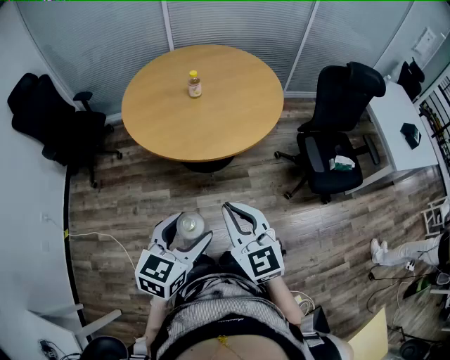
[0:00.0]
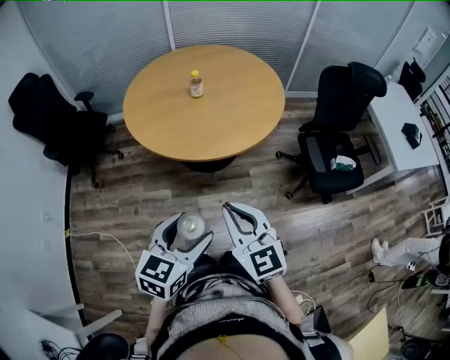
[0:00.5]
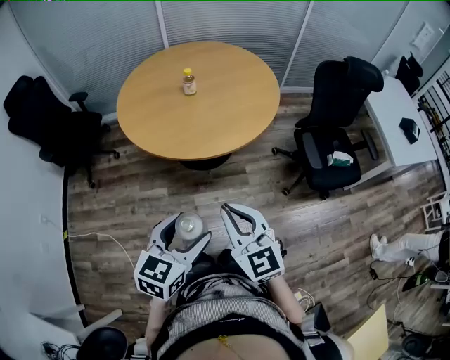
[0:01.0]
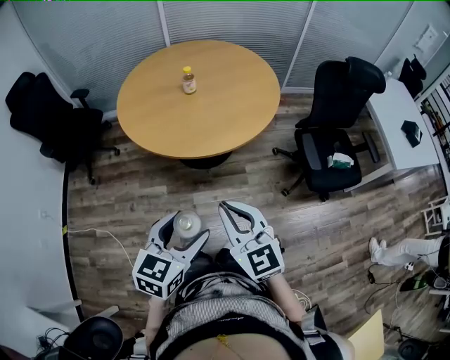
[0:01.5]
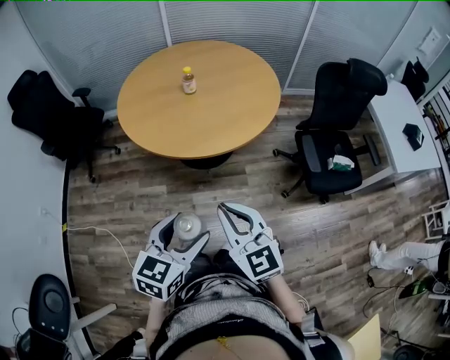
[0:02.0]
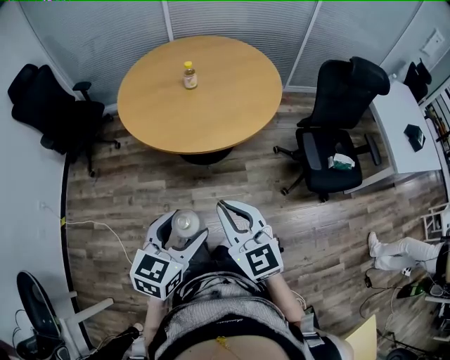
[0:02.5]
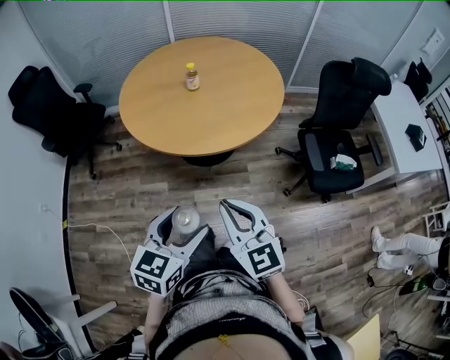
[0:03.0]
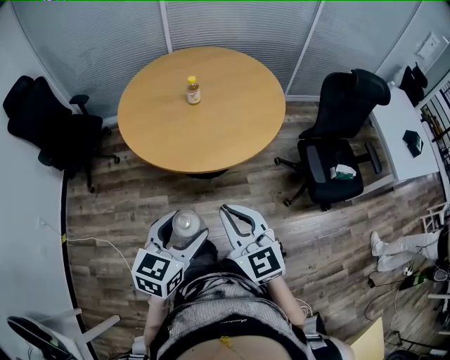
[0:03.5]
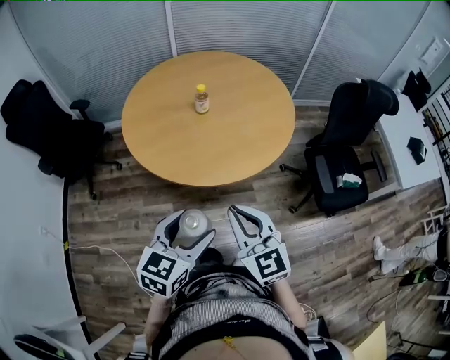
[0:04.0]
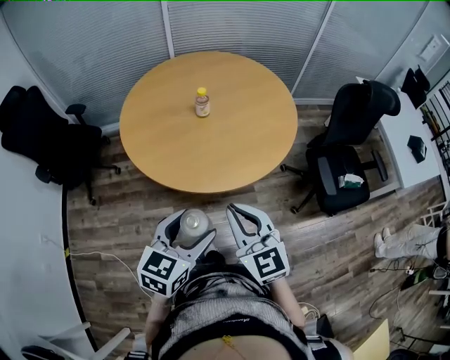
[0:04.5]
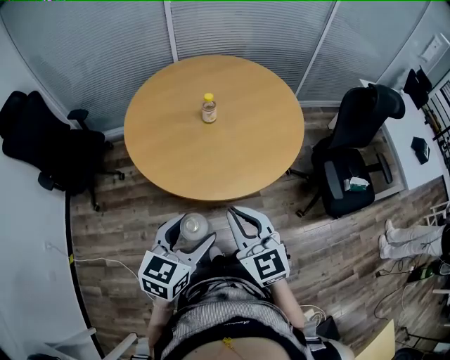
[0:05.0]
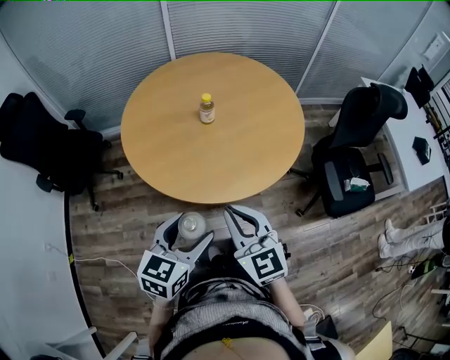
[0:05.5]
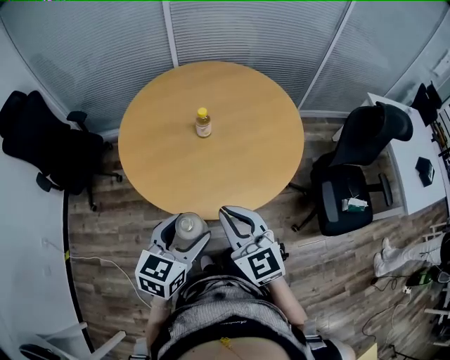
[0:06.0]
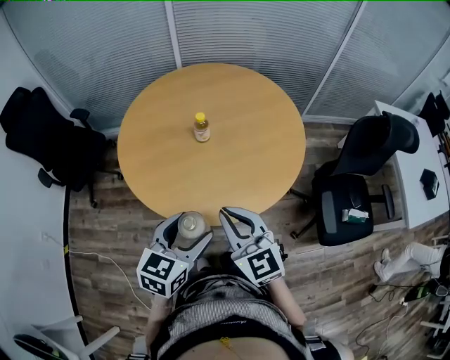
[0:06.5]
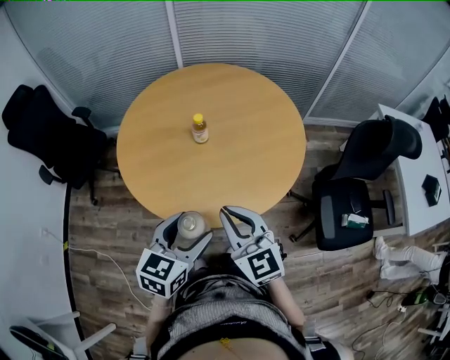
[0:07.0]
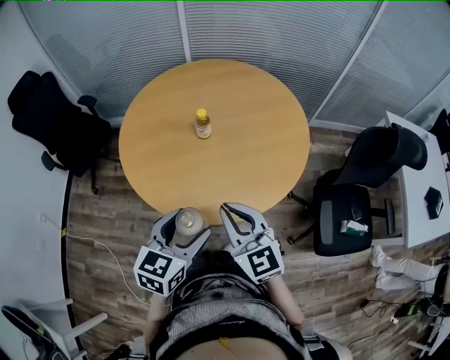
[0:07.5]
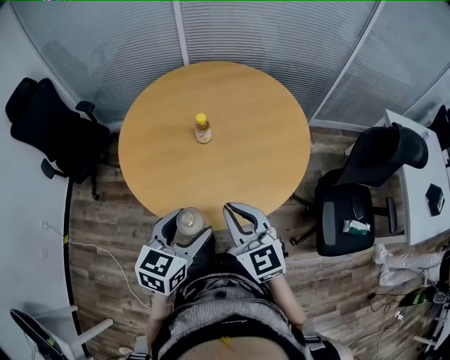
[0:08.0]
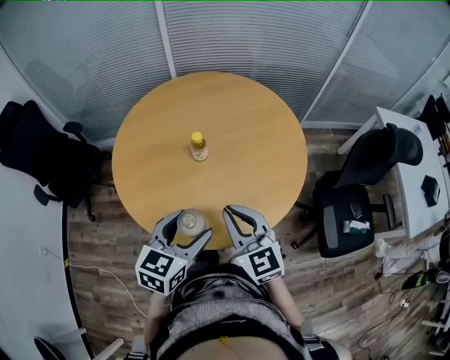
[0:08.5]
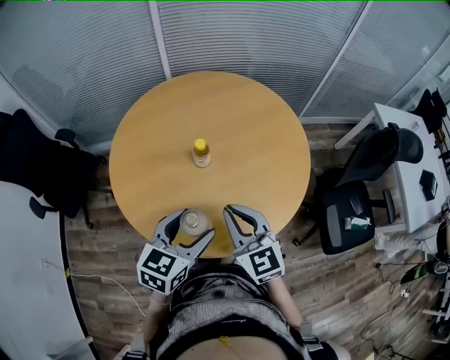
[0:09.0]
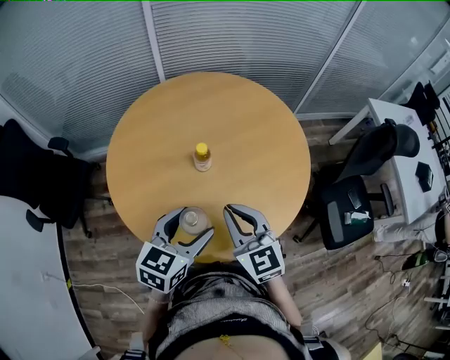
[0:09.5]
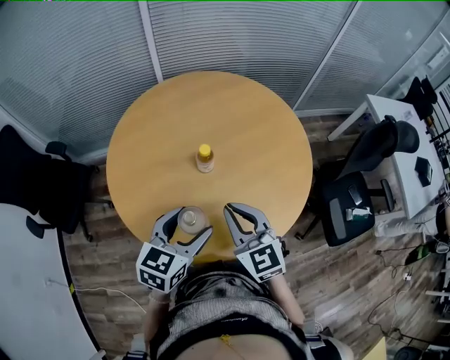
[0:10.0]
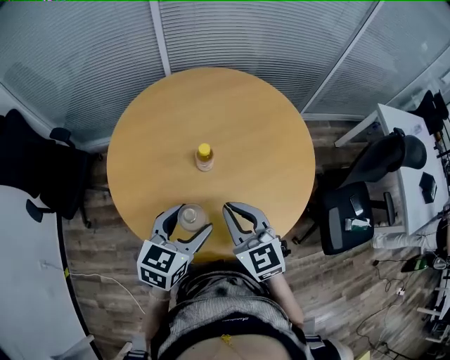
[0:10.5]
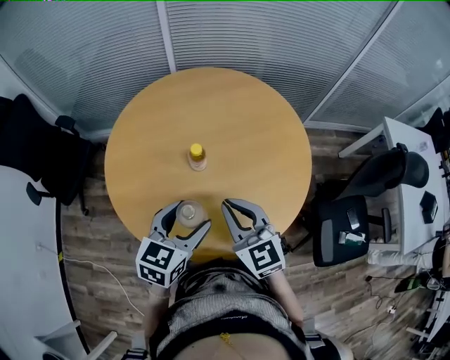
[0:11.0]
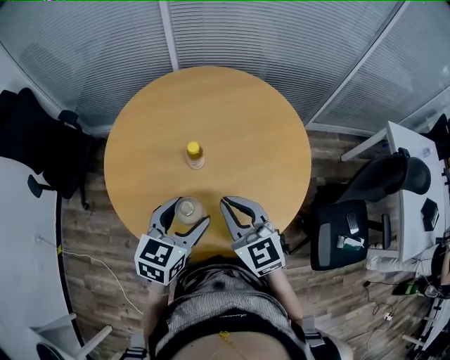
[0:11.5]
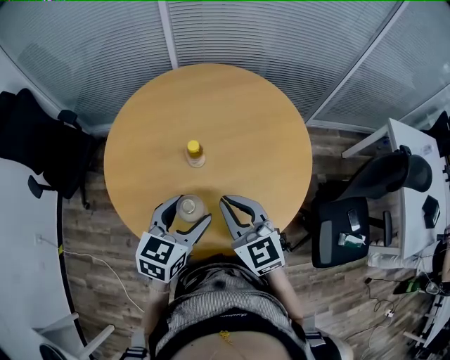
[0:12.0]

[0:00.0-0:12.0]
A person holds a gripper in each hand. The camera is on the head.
0.0 to 2.0 s: There are only small adjustments of the grippers.
2.0 to 4.0 s: The two grippers go about 15 cm forward and to the left.
4.0 to 6.0 s: Both grippers move forward, approximately 15 cm.
6.0 to 8.0 s: The grippers both shift forward and to the right by some 10 cm.
8.0 to 10.0 s: Both grippers travel together forward and to the left, about 15 cm.
10.0 to 12.0 s: The grippers both shift to the right by about 10 cm.

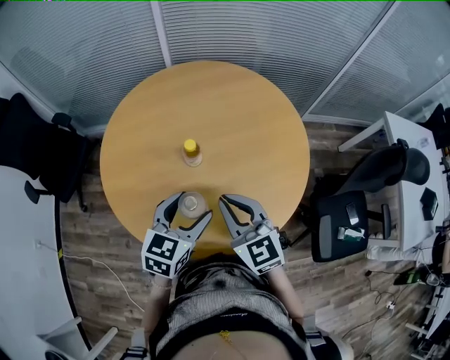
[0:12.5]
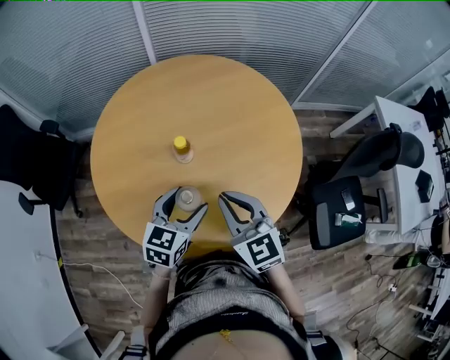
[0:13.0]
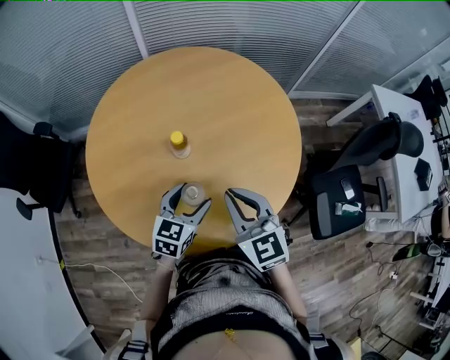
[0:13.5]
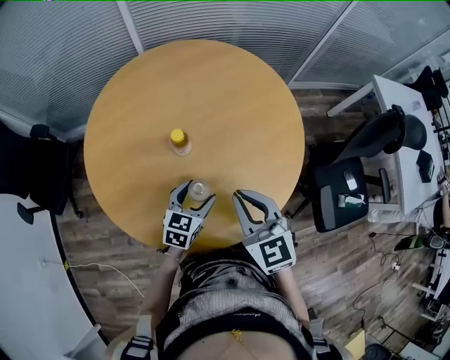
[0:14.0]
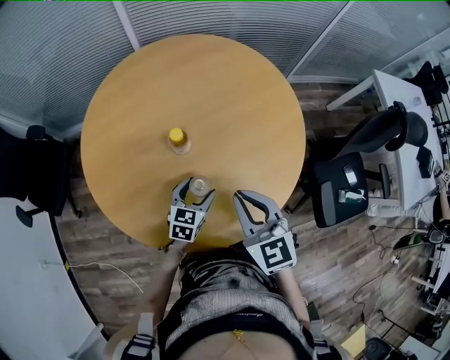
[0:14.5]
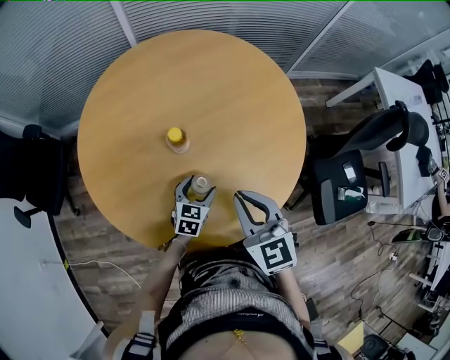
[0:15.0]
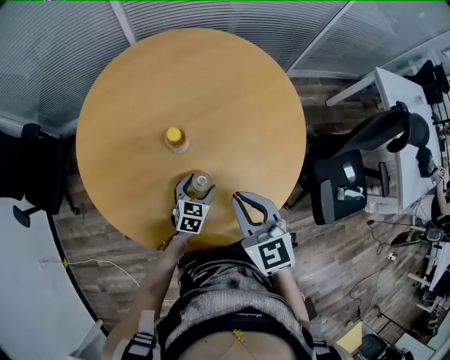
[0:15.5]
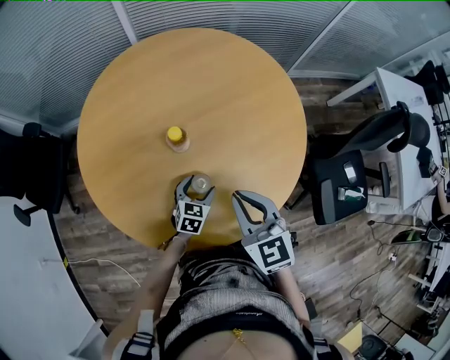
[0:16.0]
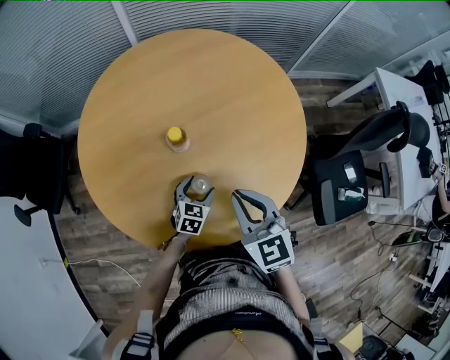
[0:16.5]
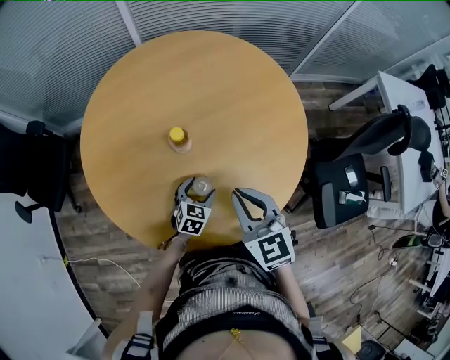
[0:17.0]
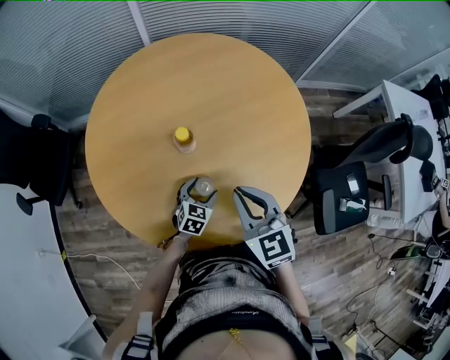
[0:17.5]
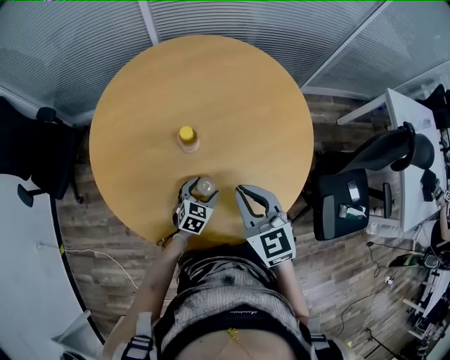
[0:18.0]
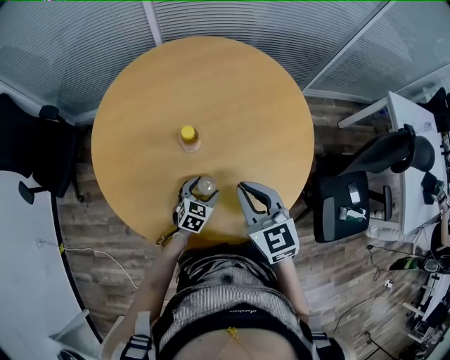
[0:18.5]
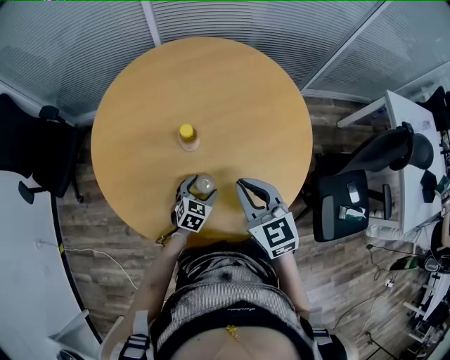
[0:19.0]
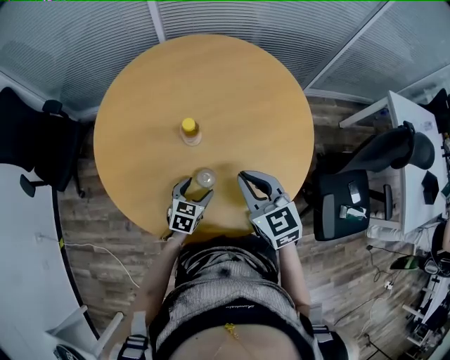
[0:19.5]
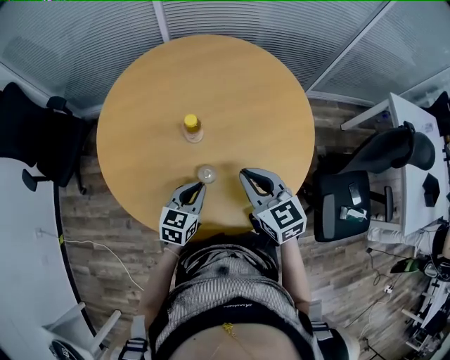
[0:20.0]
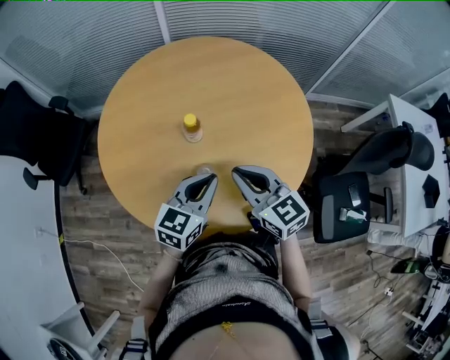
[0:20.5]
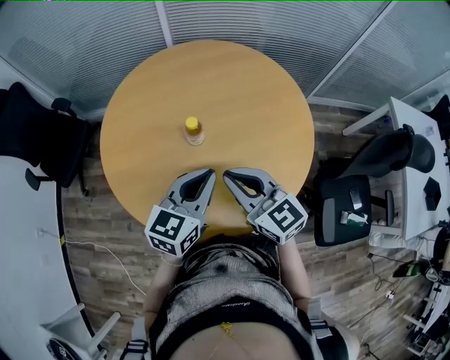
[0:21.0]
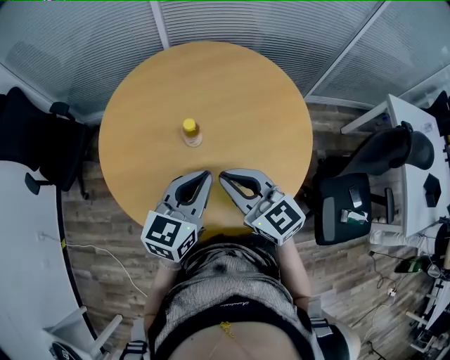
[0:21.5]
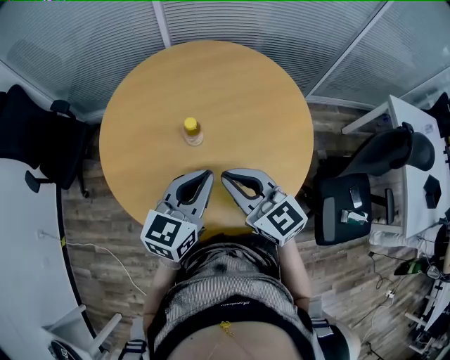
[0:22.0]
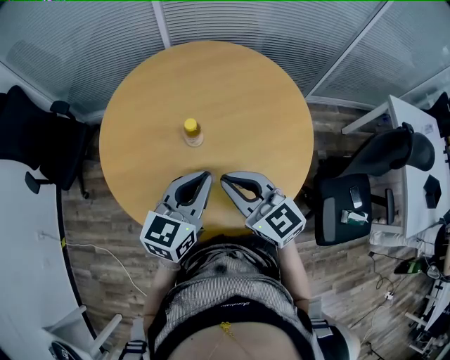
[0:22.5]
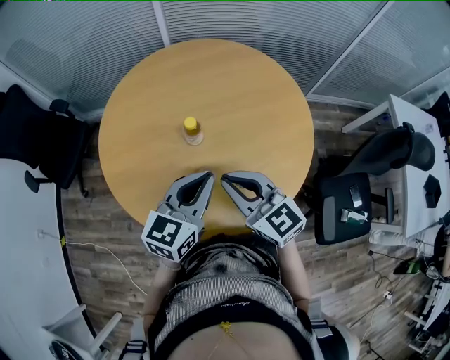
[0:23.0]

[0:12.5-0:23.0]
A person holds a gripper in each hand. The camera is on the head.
12.5 to 14.5 s: The left gripper is displaced downward by roughly 20 cm.
14.5 to 16.5 s: The left gripper heads downward, covering roughly 5 cm.
16.5 to 19.0 s: There are only small adjustments of the grippers.
19.0 to 21.0 s: The right gripper moves upward, some 5 cm, and rotates roughly 20 degrees; the left gripper goes some 30 cm upward, turns by roughly 30 degrees, and closes.
21.0 to 23.0 s: There are only small adjustments of the grippers.

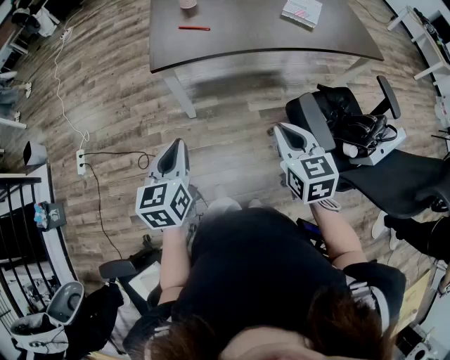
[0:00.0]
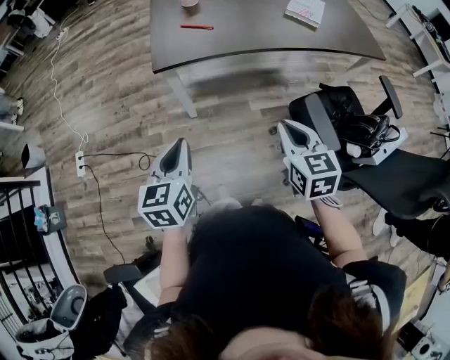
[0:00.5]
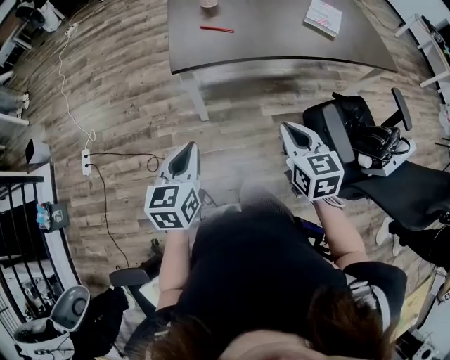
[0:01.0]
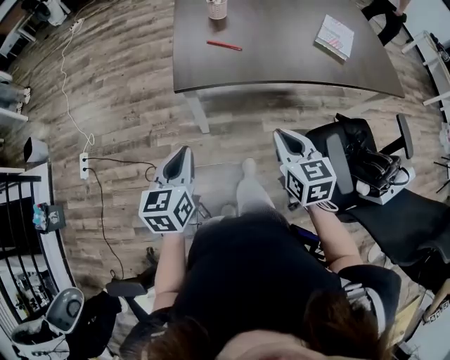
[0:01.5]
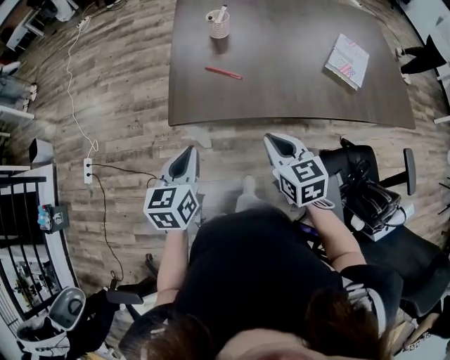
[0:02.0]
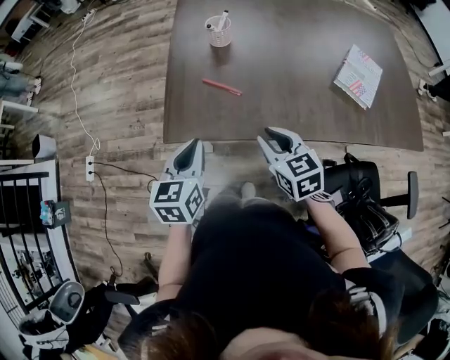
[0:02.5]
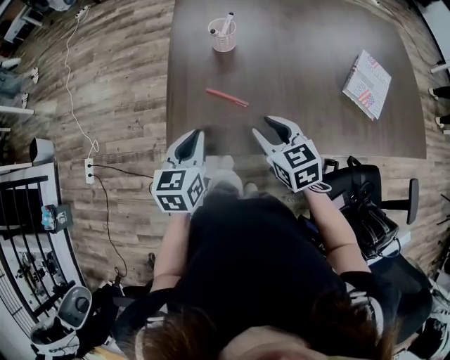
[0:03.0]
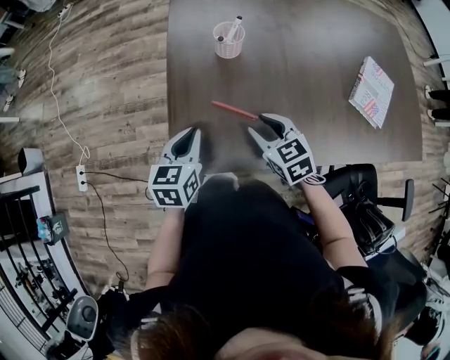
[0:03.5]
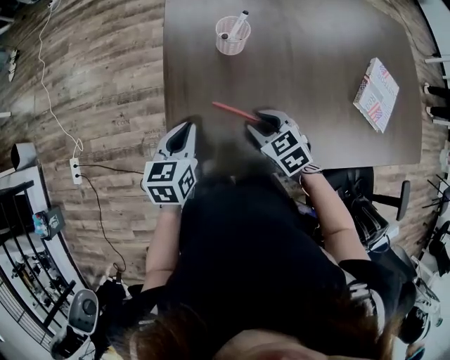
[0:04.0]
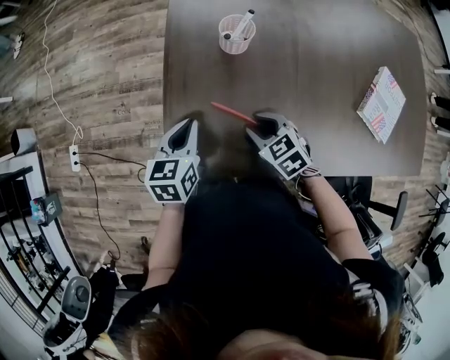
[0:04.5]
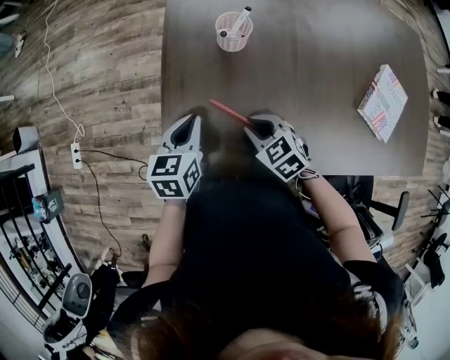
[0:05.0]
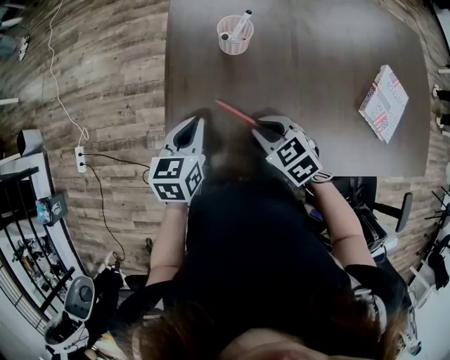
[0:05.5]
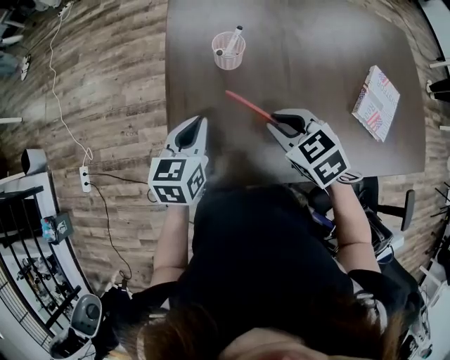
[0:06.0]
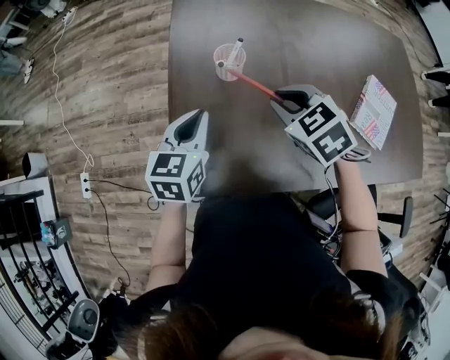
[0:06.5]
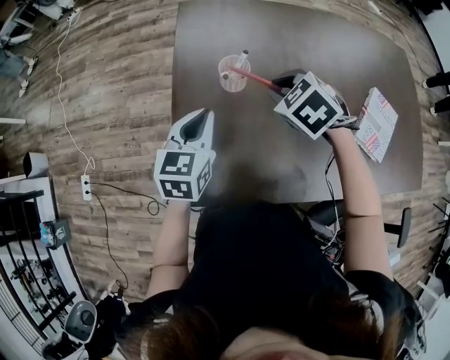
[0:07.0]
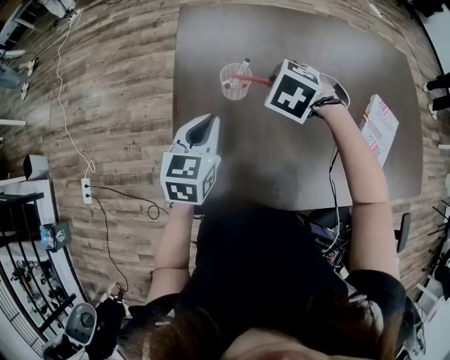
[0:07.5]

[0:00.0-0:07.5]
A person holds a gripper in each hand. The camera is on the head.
0.0 to 2.0 s: Both grippers travel together forward, some 25 cm.
2.0 to 4.0 s: The left gripper travels forward by about 30 cm. Meanwhile the right gripper heads forward and downward, covering roughly 30 cm, changes its angle by some 30 degrees, and opens its fingers.
4.0 to 5.5 s: The grippers stay close to where they were, moving slightly.
5.5 to 7.5 s: The left gripper goes roughly 15 cm forward, upward and to the right, while the right gripper travels forward and upward by roughly 20 cm, and turns by about 30 degrees.
